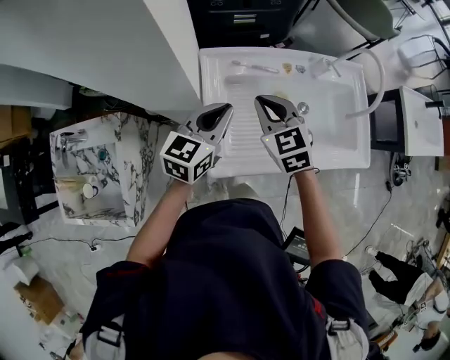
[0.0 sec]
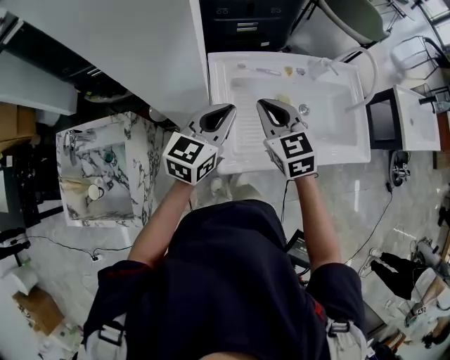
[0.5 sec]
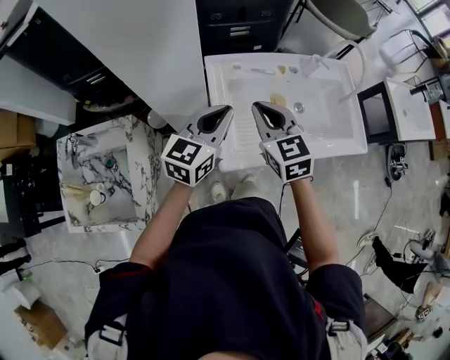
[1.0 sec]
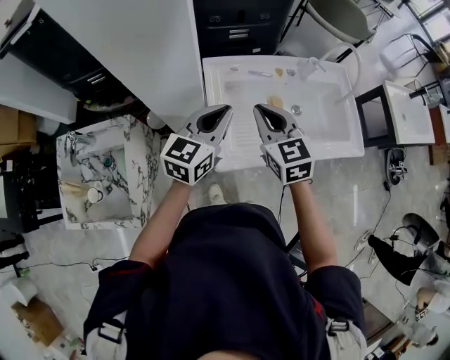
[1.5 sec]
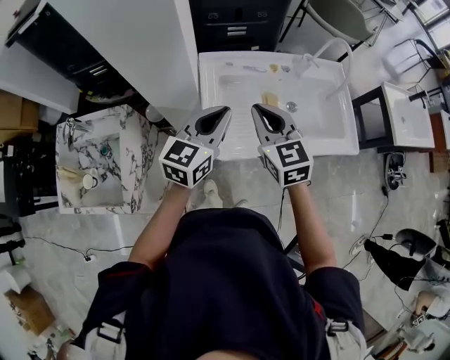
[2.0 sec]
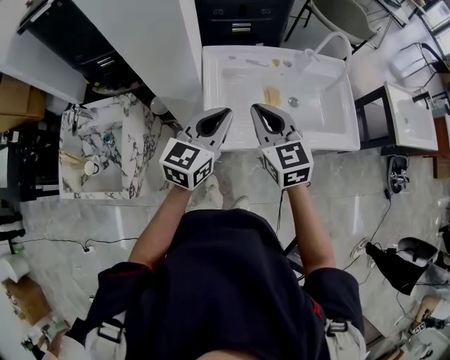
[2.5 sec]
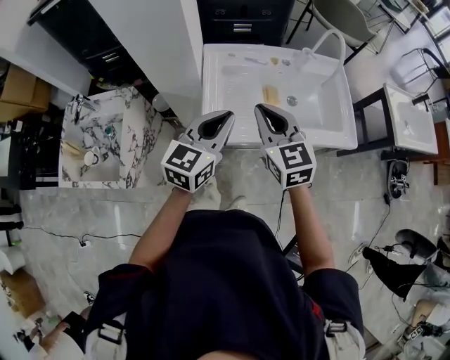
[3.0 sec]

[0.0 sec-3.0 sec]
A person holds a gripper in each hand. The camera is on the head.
0.0 sec to 1.5 sec: The grippers both shift backward and upward by about 10 cm.
1.5 sec to 3.0 sec: The two grippers go roughly 15 cm backward and to the right.

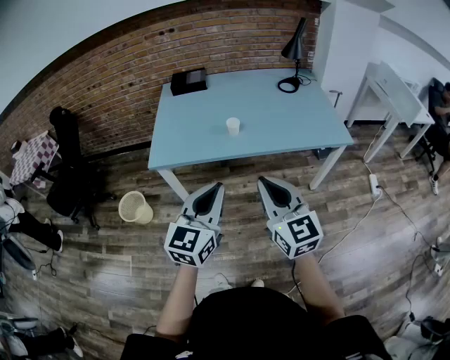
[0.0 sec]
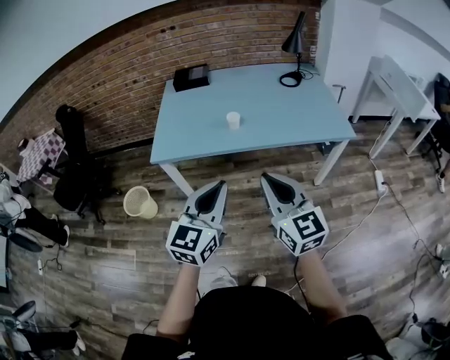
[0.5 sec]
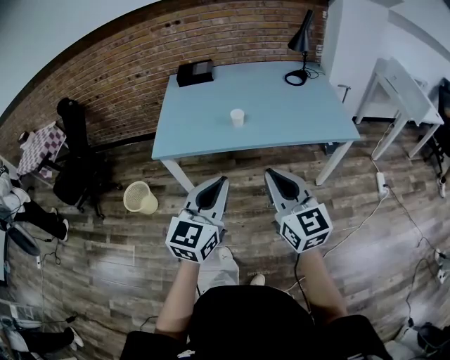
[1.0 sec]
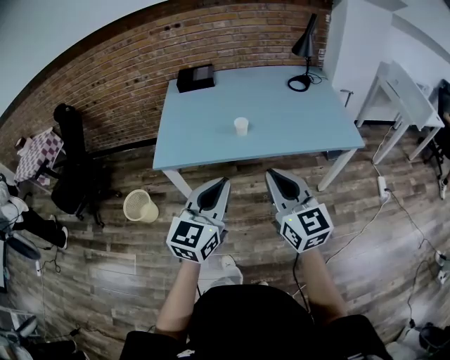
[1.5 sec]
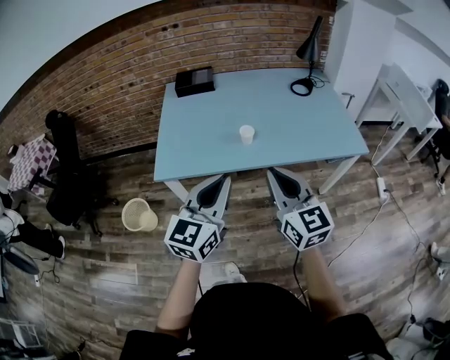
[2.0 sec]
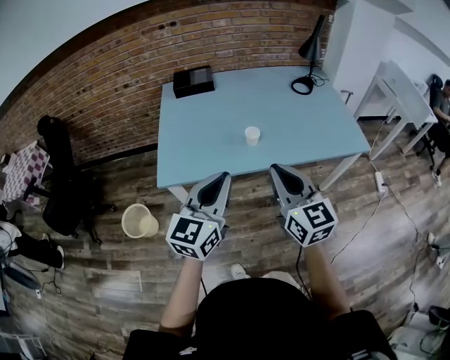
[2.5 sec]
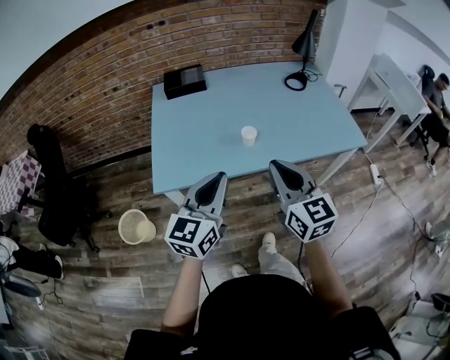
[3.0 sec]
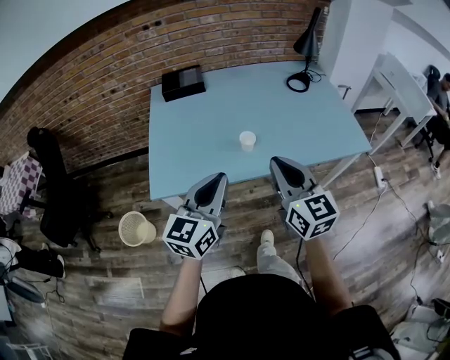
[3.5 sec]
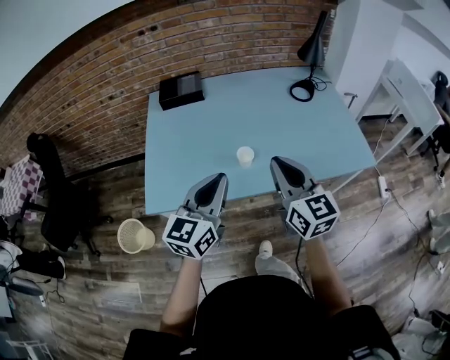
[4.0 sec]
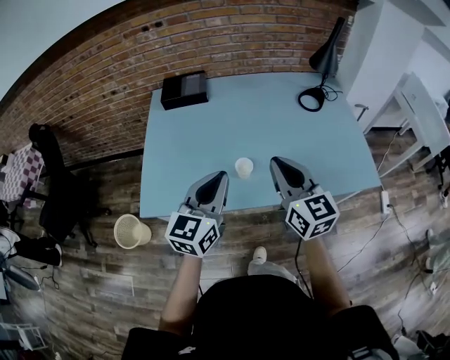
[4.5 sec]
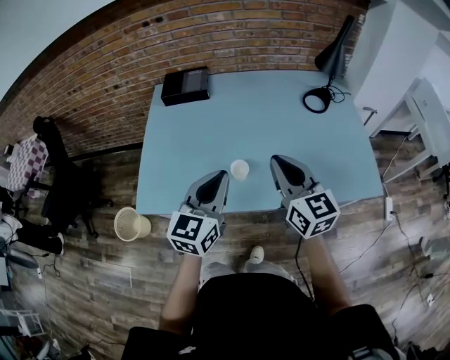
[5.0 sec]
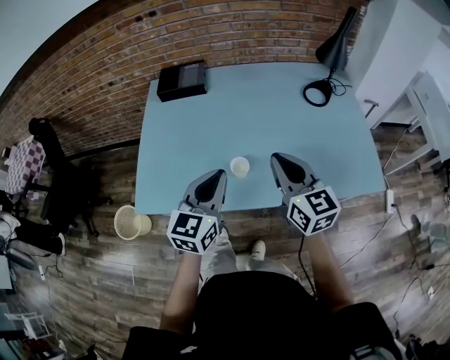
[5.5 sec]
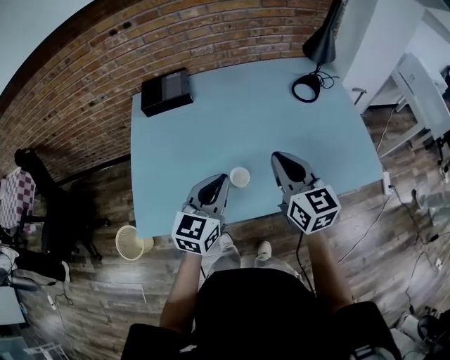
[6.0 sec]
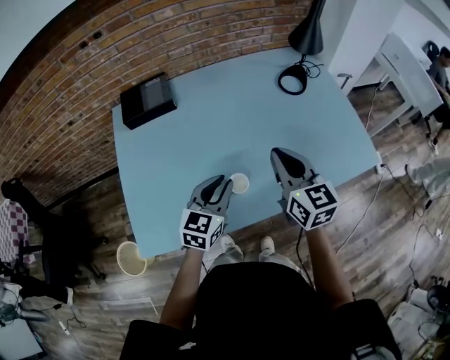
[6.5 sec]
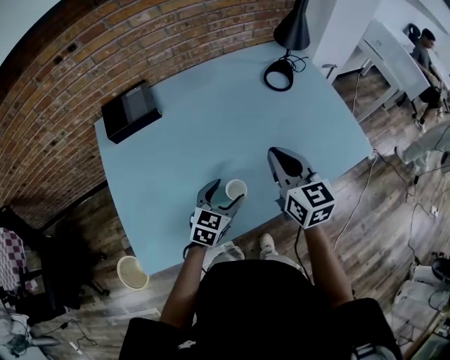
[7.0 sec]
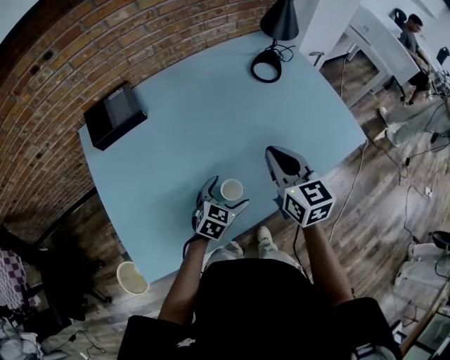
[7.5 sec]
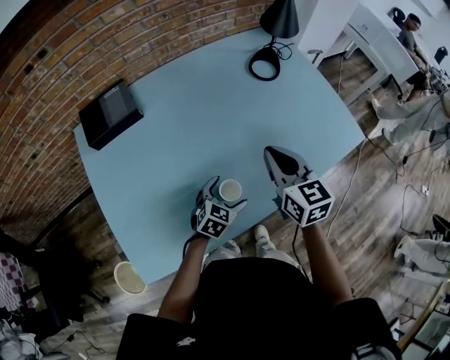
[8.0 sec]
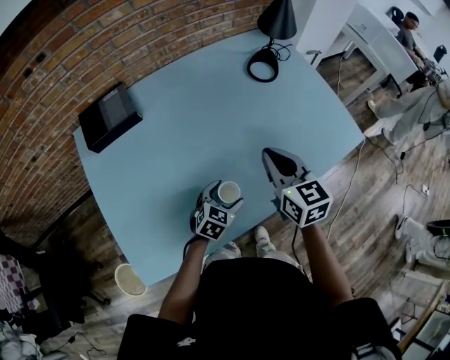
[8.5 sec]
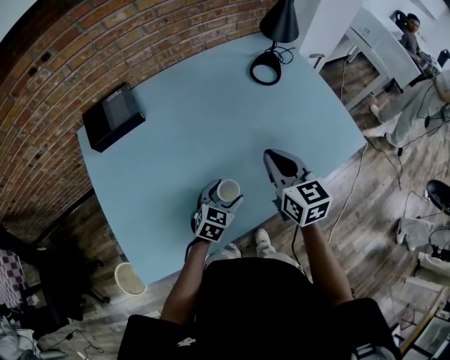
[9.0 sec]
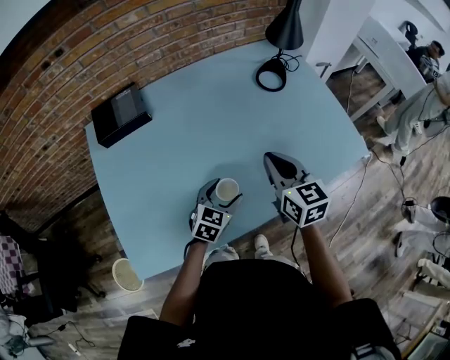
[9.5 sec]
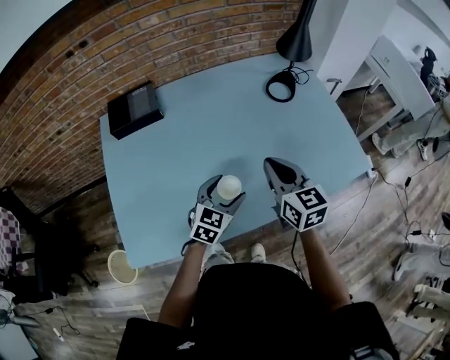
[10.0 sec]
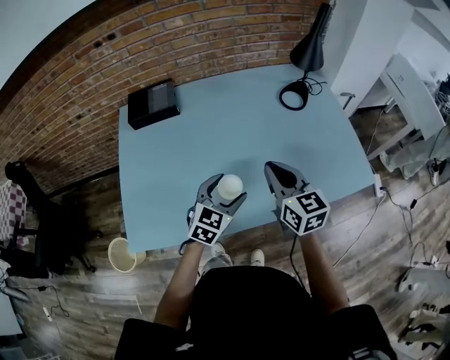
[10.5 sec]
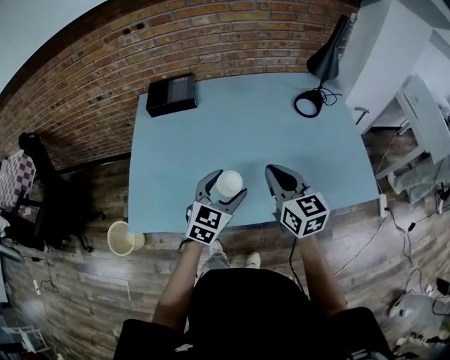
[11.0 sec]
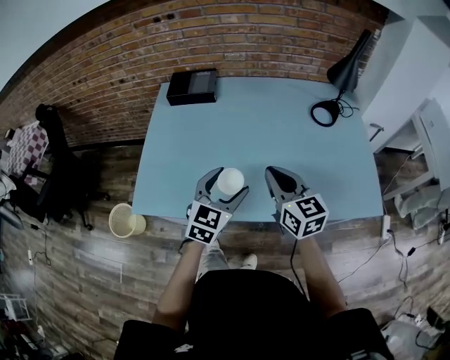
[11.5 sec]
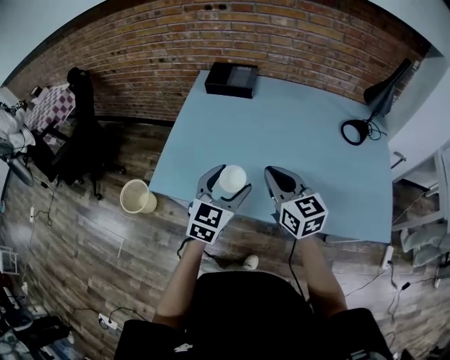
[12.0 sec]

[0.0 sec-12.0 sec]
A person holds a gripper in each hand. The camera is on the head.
0.0 sec to 2.0 sec: Both grippers move forward, roughly 10 cm.
2.0 sec to 4.0 sec: The two grippers go roughly 20 cm forward.
4.0 sec to 6.0 sec: The right gripper is displaced forward by roughly 15 cm. The left gripper shifts some 20 cm forward and downward.
6.0 sec to 8.0 sec: The right gripper changes place by some 10 cm, and rotates about 20 degrees. The left gripper is displaced downward by approximately 25 cm, swivels some 40 degrees, and opens.
8.0 sec to 10.0 sec: The left gripper shifts some 10 cm upward.
10.0 sec to 12.0 sec: The right gripper moves about 15 cm, and turns by some 40 degrees. The left gripper changes place by some 20 cm, and turns by roughly 40 degrees.

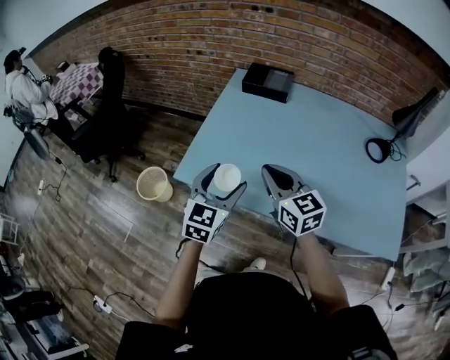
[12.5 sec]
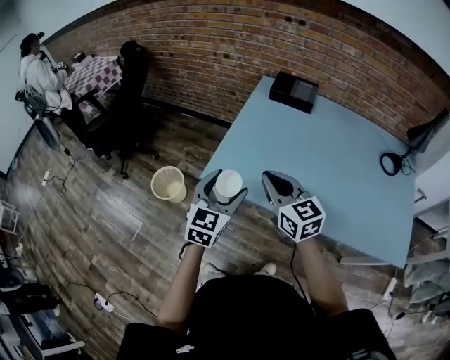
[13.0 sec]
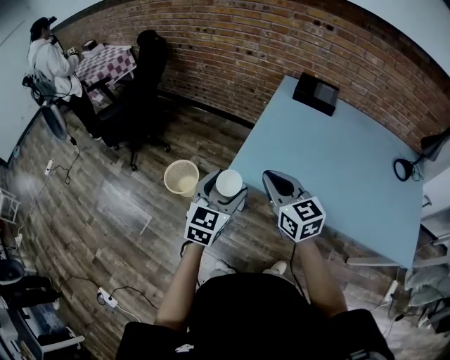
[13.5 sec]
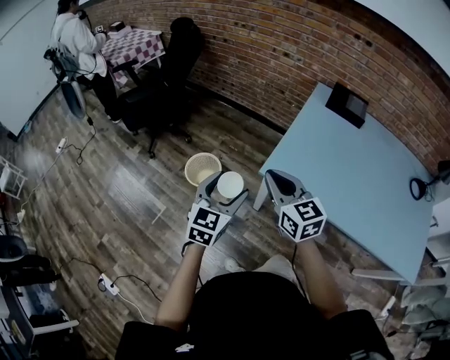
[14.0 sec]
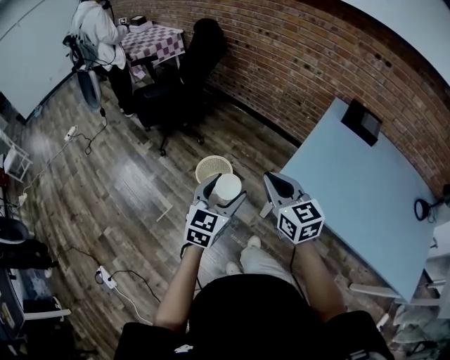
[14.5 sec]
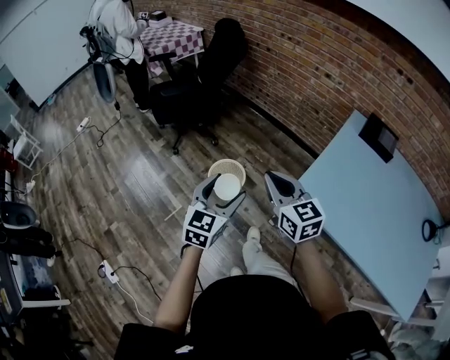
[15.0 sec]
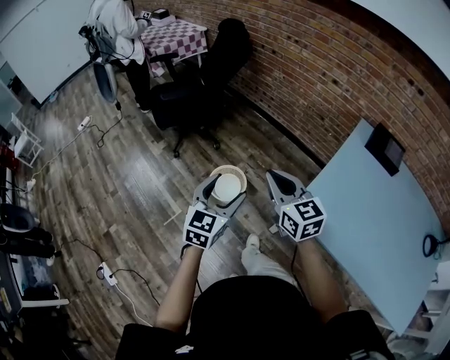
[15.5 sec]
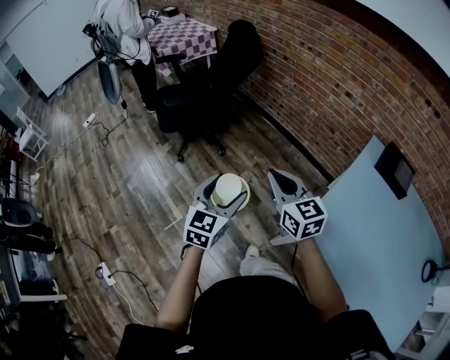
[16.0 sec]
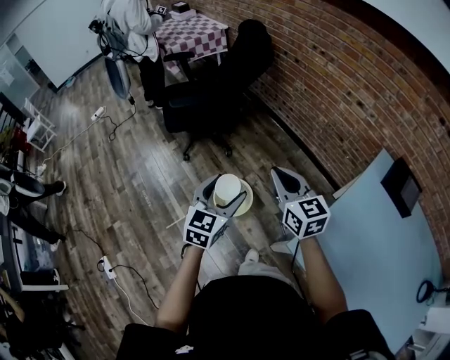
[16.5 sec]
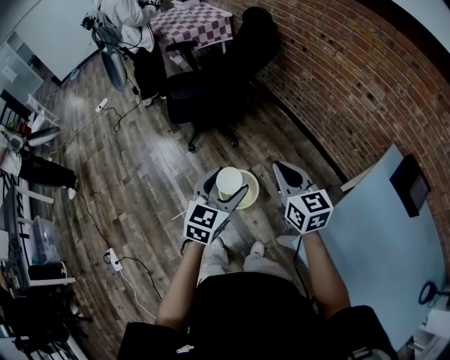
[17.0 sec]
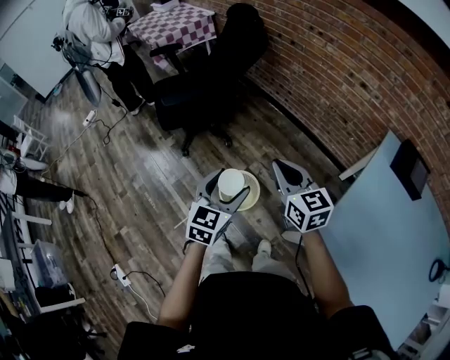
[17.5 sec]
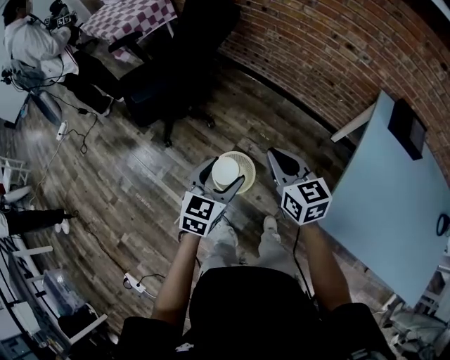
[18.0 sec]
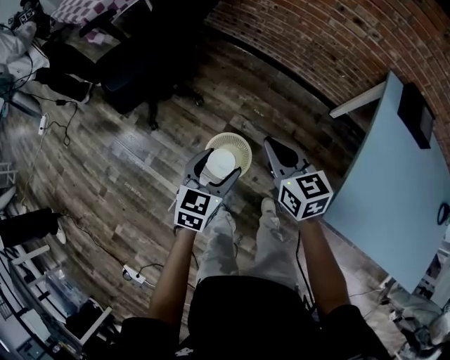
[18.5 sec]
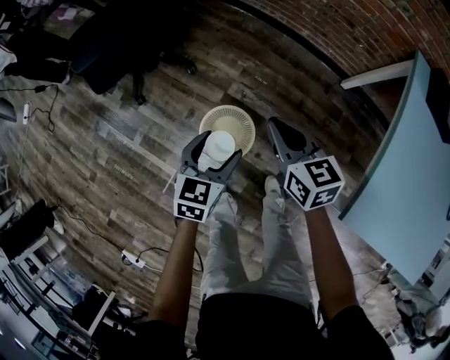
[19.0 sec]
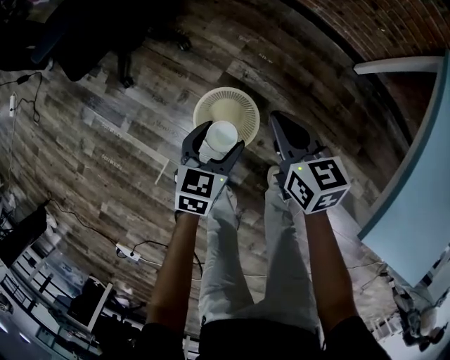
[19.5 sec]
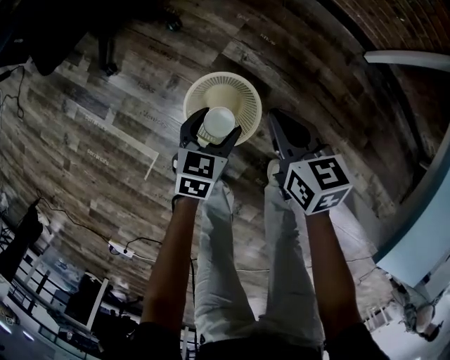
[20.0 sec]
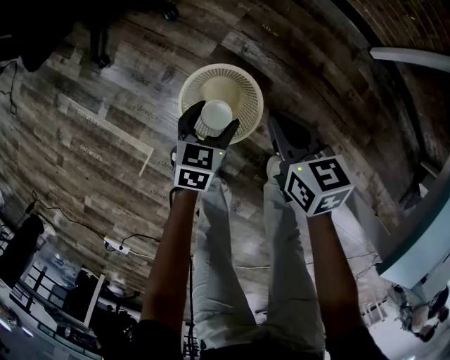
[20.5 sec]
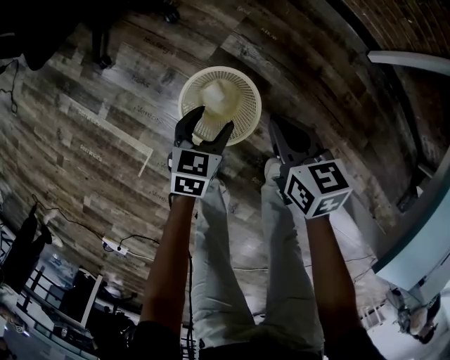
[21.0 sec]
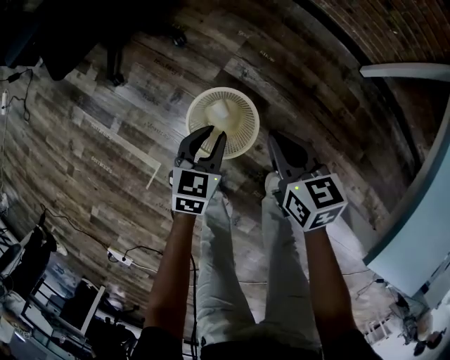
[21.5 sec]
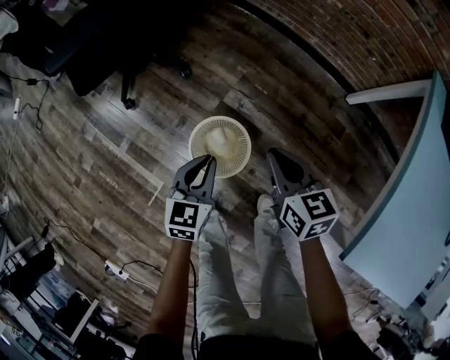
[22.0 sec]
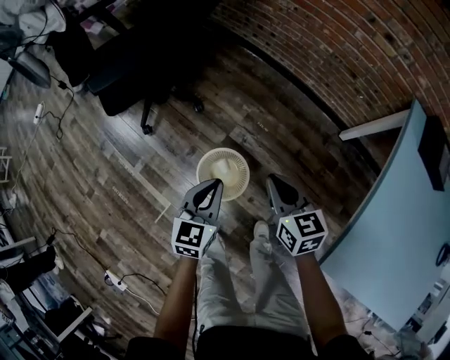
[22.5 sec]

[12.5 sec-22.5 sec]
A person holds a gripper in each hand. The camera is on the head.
12.5 sec to 14.5 sec: The two grippers travel together, to the left, roughly 40 cm.
14.5 sec to 16.5 sec: Both grippers move forward, some 25 cm.
16.5 sec to 18.5 sec: The two grippers go about 20 cm downward and forward. The right gripper turns by some 20 degrees. Meanwhile the left gripper turns by roughly 30 degrees.
18.5 sec to 20.5 sec: The two grippers go about 40 cm downward. The right gripper changes its angle by roughly 20 degrees.
20.5 sec to 22.5 sec: The two grippers go approximately 30 cm upward. The left gripper changes its angle by some 20 degrees, and closes.

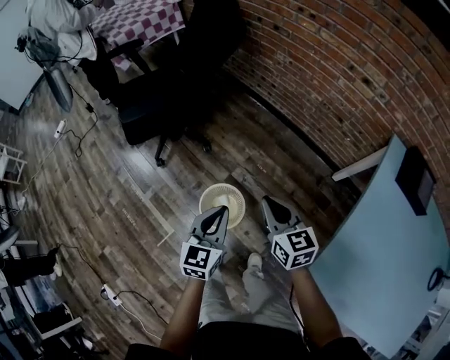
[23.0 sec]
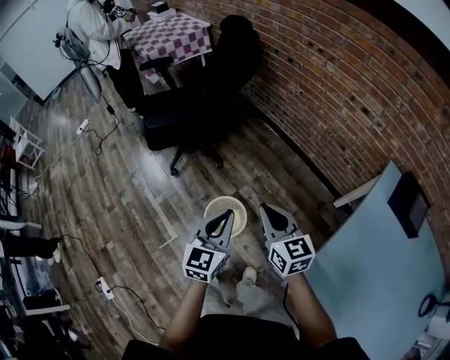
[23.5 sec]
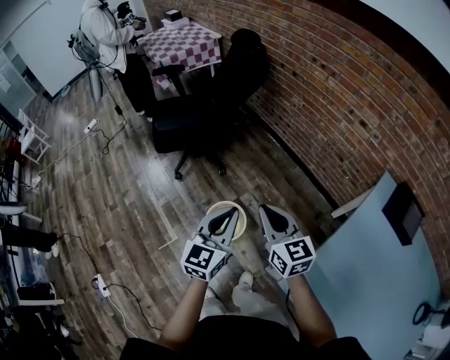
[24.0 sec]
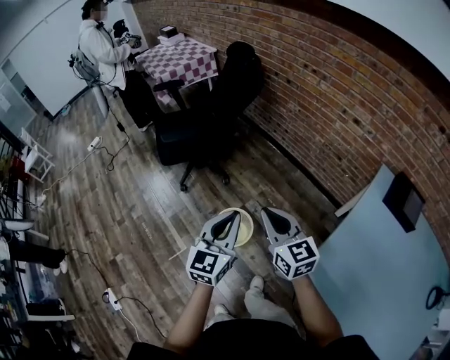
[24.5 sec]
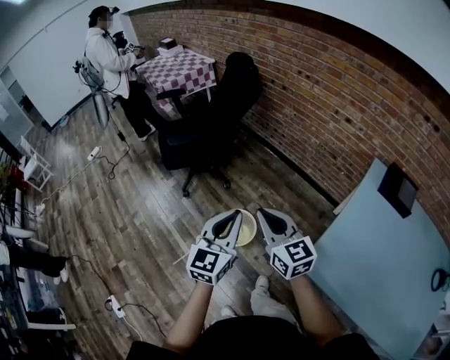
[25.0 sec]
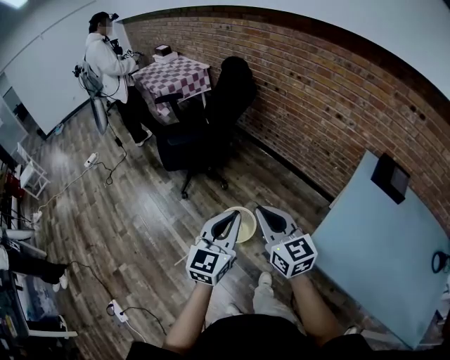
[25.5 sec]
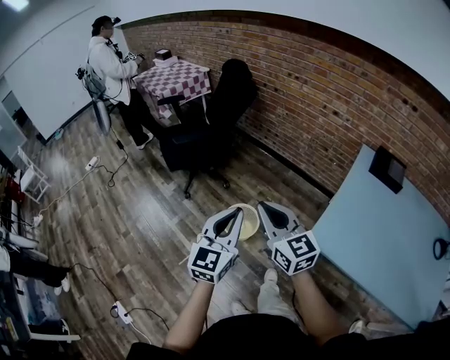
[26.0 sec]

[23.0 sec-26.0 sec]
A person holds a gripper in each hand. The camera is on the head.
23.0 sec to 24.5 sec: Both grippers move upward and backward, some 20 cm.
24.5 sec to 26.0 sec: The left gripper moves backward and to the left, some 20 cm; the right gripper travels backward, to the left and upward by some 25 cm.
